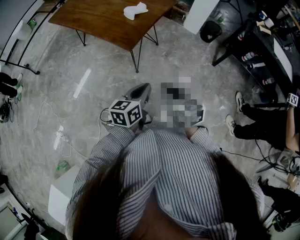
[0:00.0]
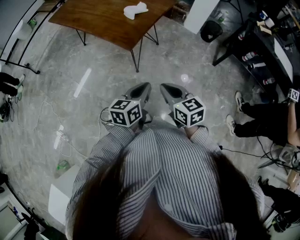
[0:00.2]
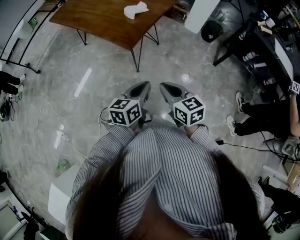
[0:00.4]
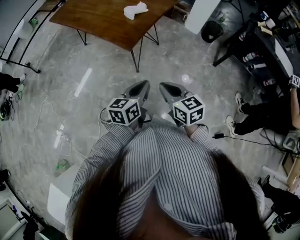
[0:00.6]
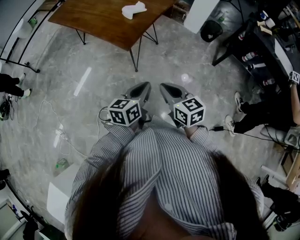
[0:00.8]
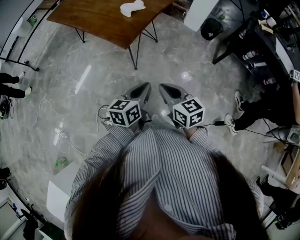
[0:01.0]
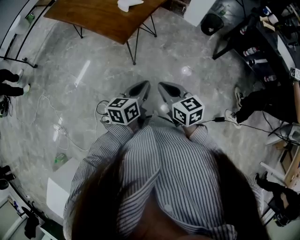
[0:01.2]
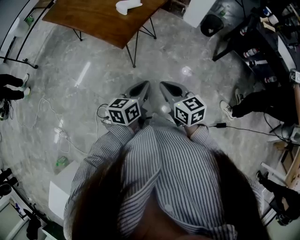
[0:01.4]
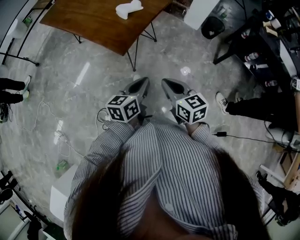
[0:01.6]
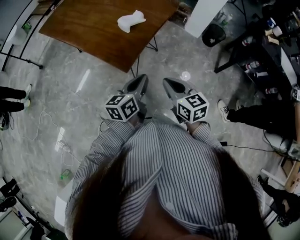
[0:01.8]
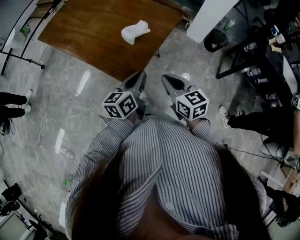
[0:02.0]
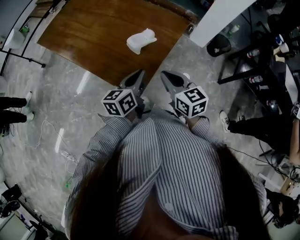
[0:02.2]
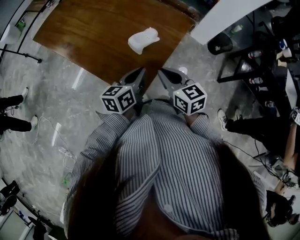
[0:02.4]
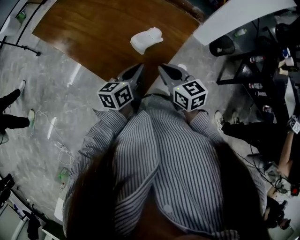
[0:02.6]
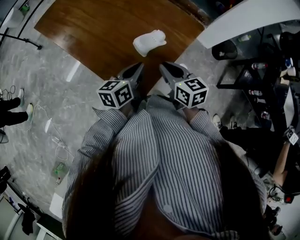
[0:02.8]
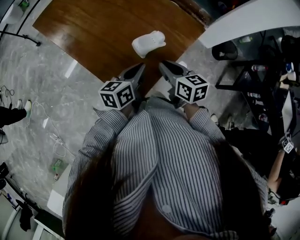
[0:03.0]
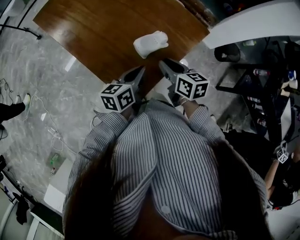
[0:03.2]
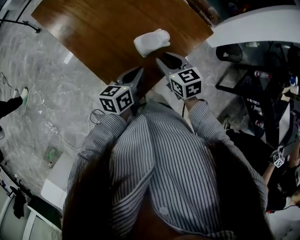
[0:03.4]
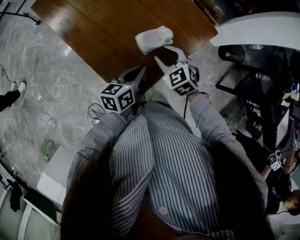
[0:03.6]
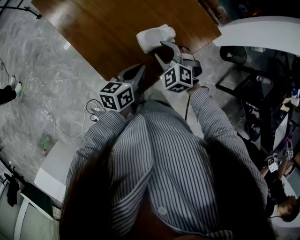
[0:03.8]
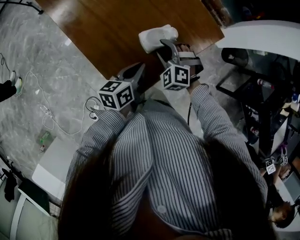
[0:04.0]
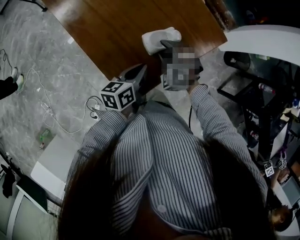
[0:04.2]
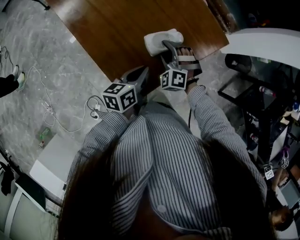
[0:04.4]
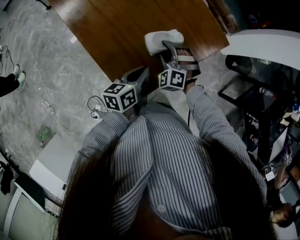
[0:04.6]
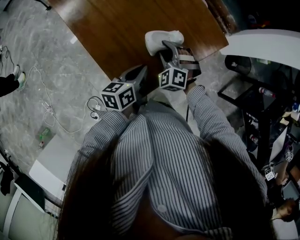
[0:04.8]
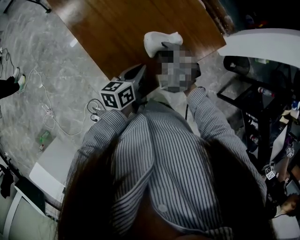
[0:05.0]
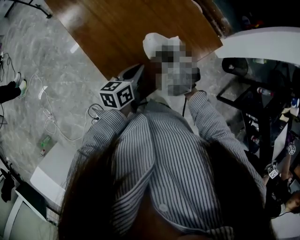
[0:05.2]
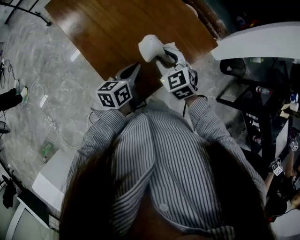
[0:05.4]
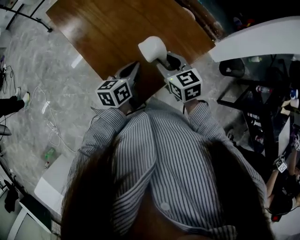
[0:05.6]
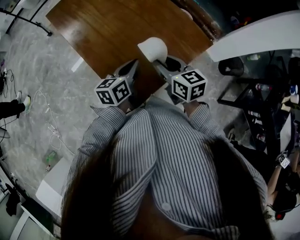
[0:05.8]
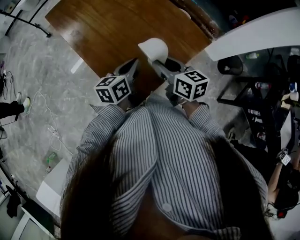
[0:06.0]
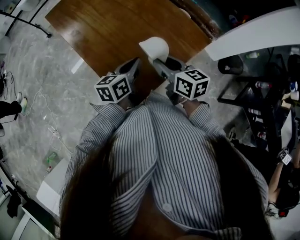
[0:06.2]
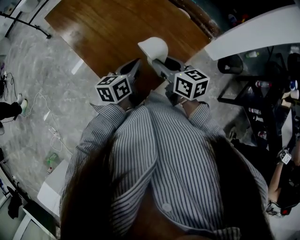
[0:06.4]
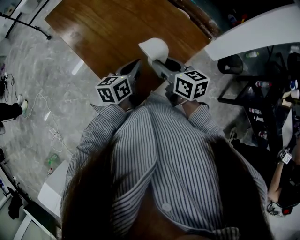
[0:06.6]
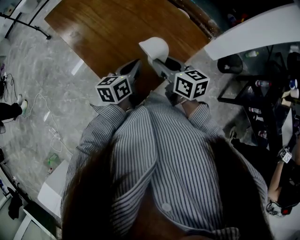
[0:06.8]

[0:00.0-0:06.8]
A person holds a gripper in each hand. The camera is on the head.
0:00.0 to 0:01.4: The left gripper ends up some 5 cm from where it was. Meanwhile the right gripper changes place by approximately 5 cm.
0:01.4 to 0:02.8: The two grippers travel together, forward, about 40 cm.
0:02.8 to 0:04.0: The left gripper moves downward, about 5 cm; the right gripper shifts approximately 15 cm downward and forward, rotates around the line of its fingers by roughly 80 degrees, counterclockwise from behind, and opens its fingers.
0:04.0 to 0:05.4: The right gripper heads upward, covering approximately 10 cm, and swivels about 40 degrees. The left gripper changes place by some 5 cm.
0:05.4 to 0:06.8: The right gripper ends up some 5 cm from where it was, and rolls clockwise, seen from behind, by approximately 50 degrees.

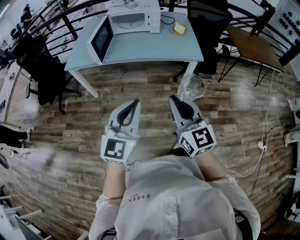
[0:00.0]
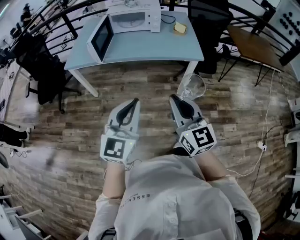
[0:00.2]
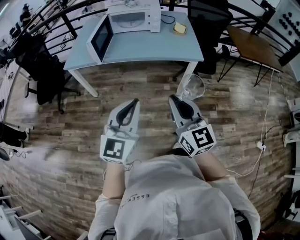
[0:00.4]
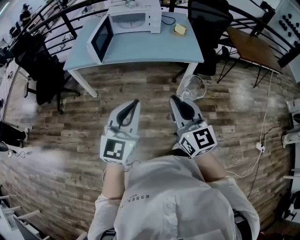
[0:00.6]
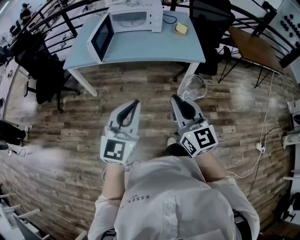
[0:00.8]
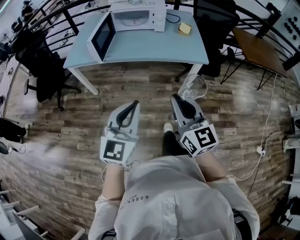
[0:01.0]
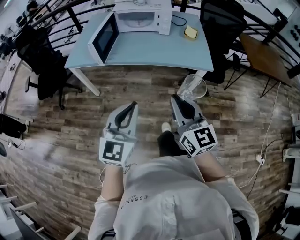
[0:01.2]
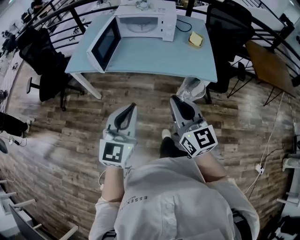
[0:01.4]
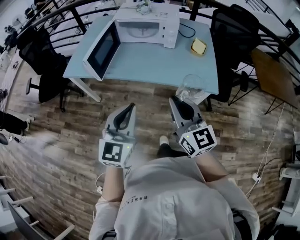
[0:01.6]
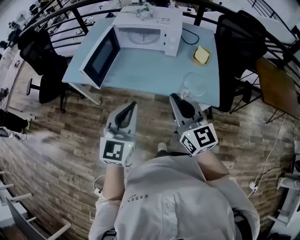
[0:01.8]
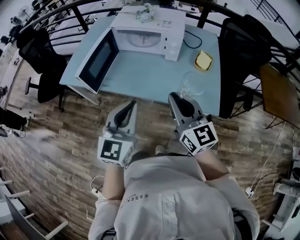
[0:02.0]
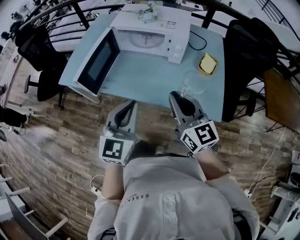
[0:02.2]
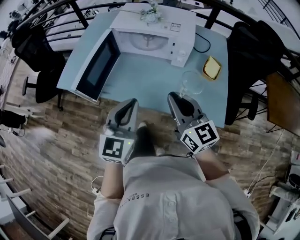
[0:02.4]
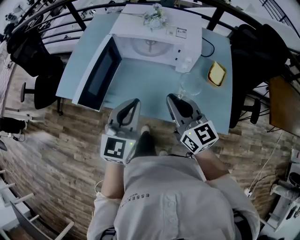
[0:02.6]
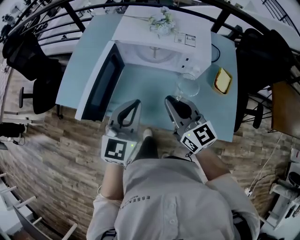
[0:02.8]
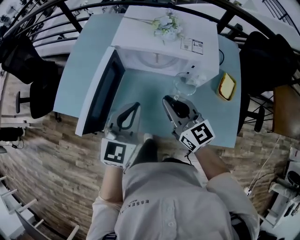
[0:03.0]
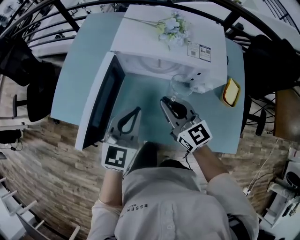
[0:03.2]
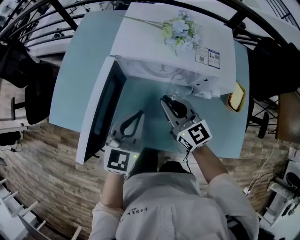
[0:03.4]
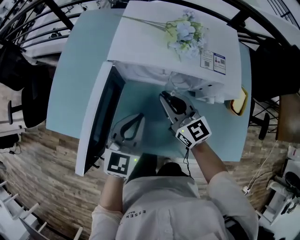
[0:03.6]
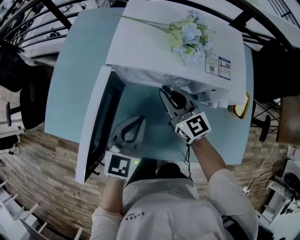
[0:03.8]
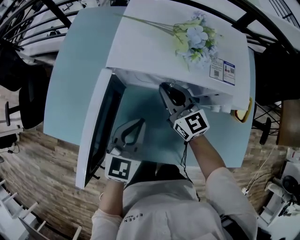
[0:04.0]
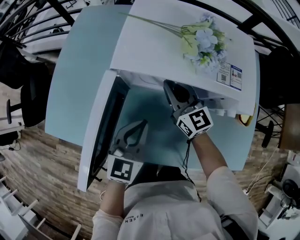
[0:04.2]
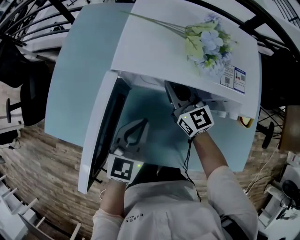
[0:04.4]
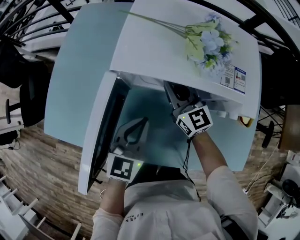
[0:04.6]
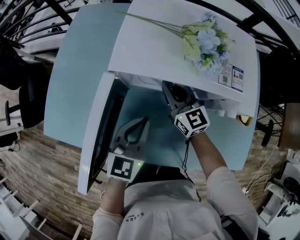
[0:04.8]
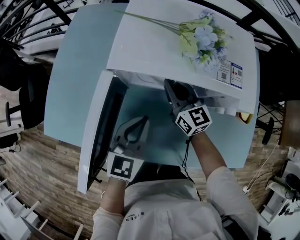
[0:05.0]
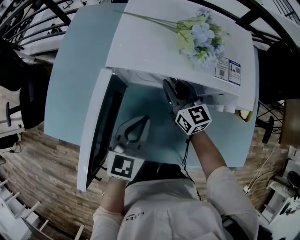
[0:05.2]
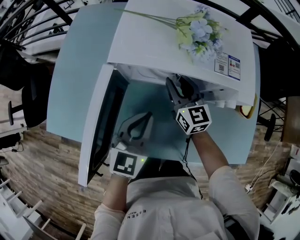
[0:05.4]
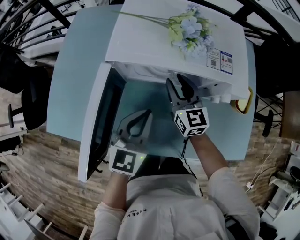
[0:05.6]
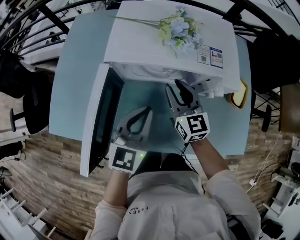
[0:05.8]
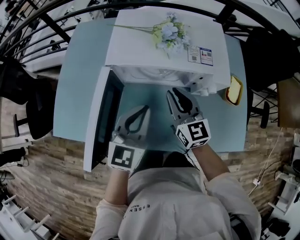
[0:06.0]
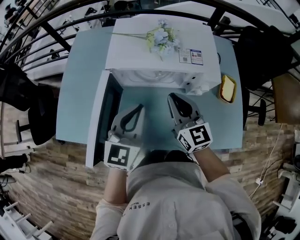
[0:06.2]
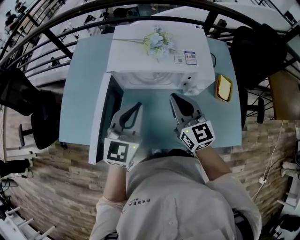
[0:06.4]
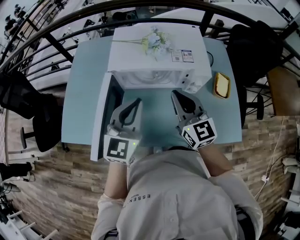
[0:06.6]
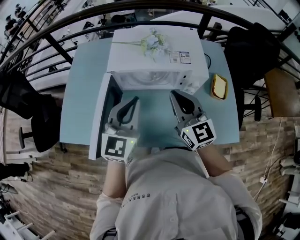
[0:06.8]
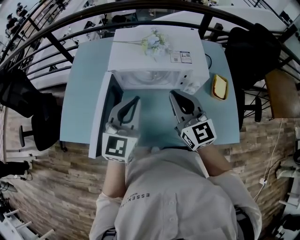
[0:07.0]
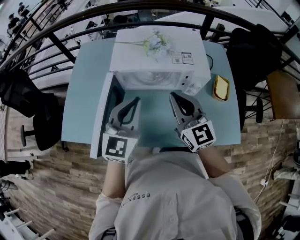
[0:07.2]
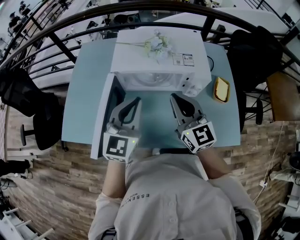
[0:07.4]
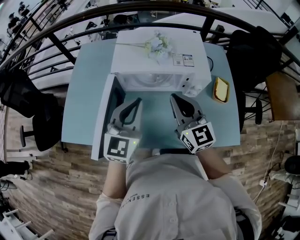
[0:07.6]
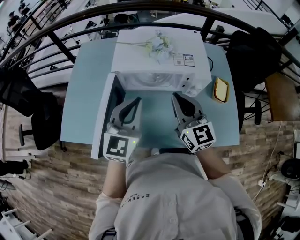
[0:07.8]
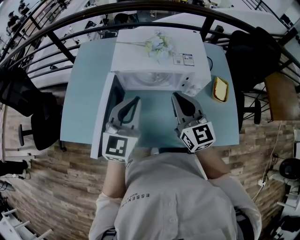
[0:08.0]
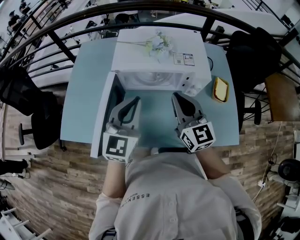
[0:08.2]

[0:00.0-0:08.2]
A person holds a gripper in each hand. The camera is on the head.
0:00.0 to 0:01.6: Both grippers move forward, some 25 cm.
0:01.6 to 0:03.2: The two grippers travel together, forward, approximately 40 cm.
0:03.2 to 0:05.0: The left gripper is displaced downward and forward by some 10 cm, while the right gripper moves forward and downward, approximately 20 cm.
0:05.0 to 0:06.6: The right gripper moves upward, backward and to the right, approximately 25 cm, and opens, then closes again, while the left gripper is displaced upward by about 15 cm.
0:06.6 to 0:08.2: The grippers move only a little.

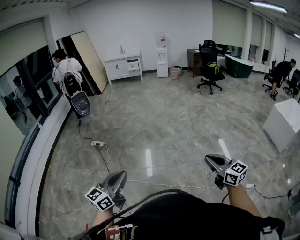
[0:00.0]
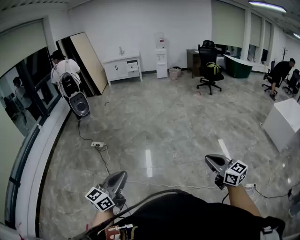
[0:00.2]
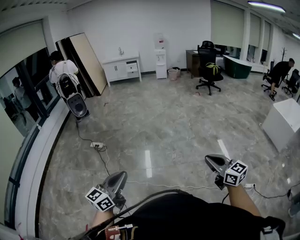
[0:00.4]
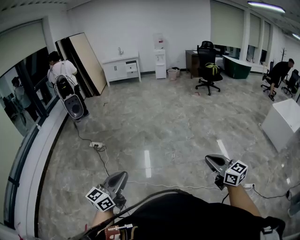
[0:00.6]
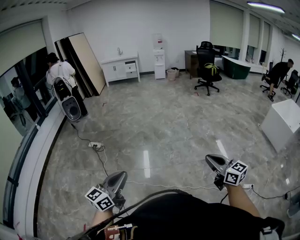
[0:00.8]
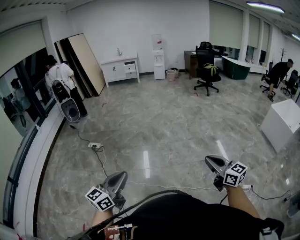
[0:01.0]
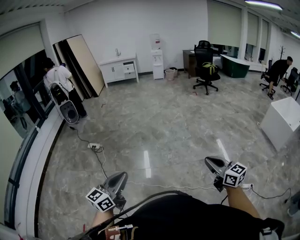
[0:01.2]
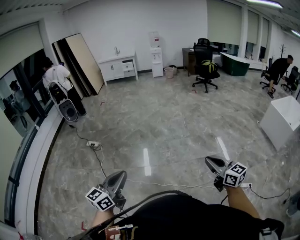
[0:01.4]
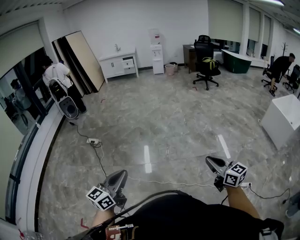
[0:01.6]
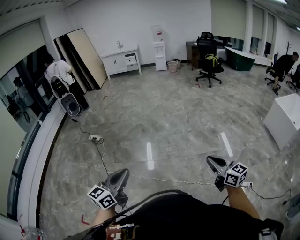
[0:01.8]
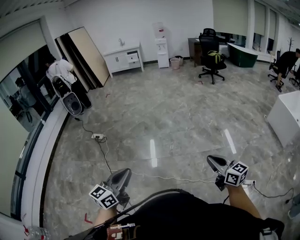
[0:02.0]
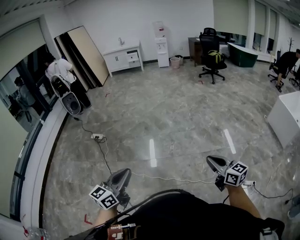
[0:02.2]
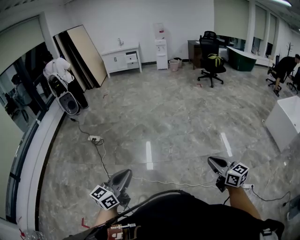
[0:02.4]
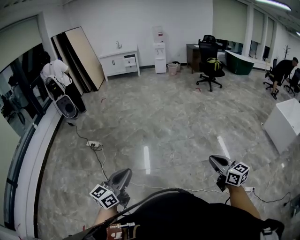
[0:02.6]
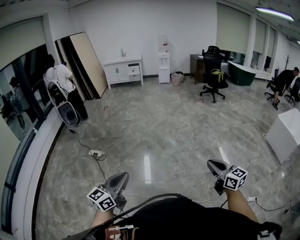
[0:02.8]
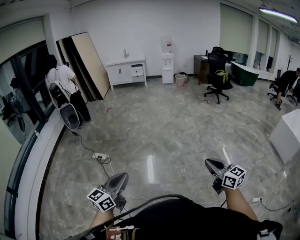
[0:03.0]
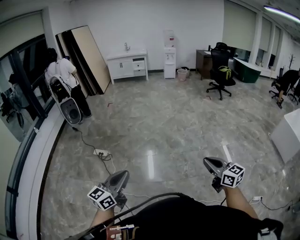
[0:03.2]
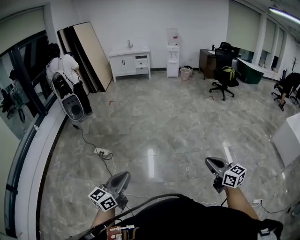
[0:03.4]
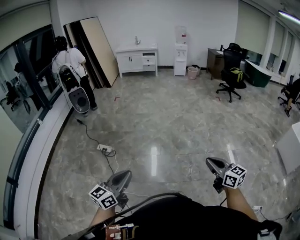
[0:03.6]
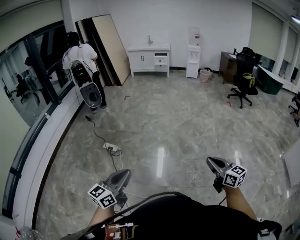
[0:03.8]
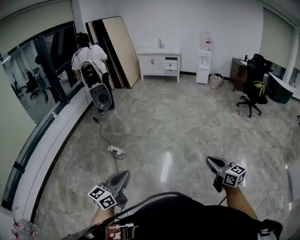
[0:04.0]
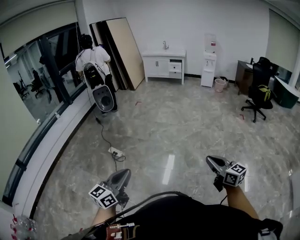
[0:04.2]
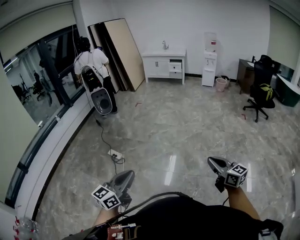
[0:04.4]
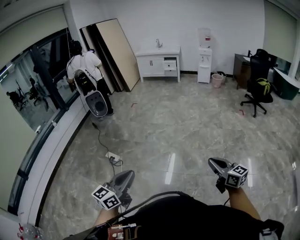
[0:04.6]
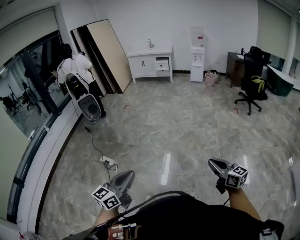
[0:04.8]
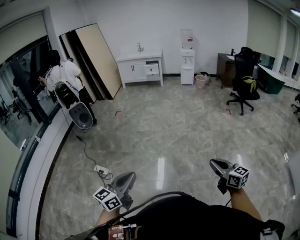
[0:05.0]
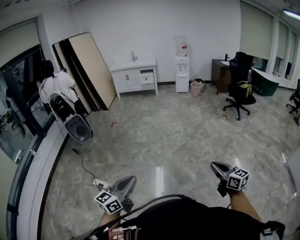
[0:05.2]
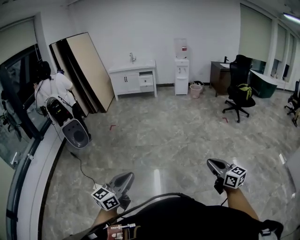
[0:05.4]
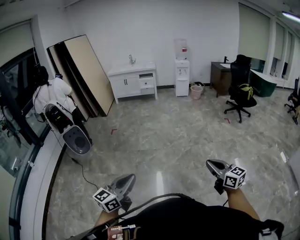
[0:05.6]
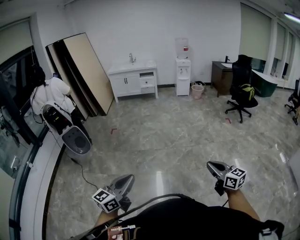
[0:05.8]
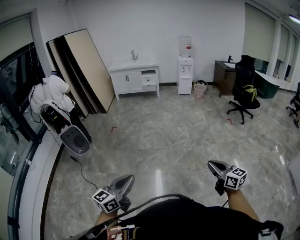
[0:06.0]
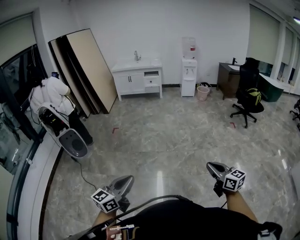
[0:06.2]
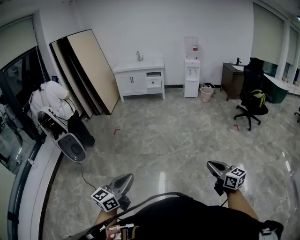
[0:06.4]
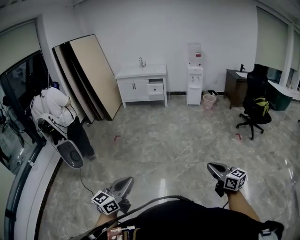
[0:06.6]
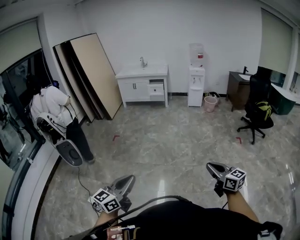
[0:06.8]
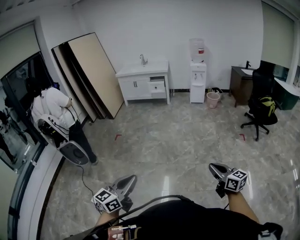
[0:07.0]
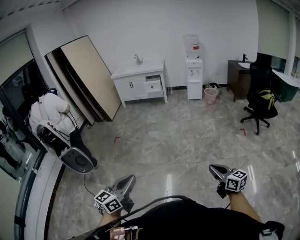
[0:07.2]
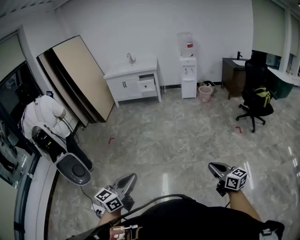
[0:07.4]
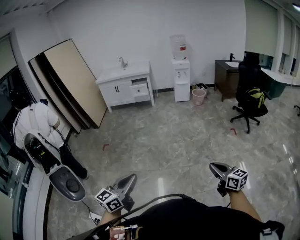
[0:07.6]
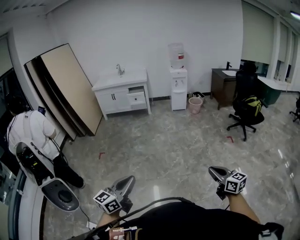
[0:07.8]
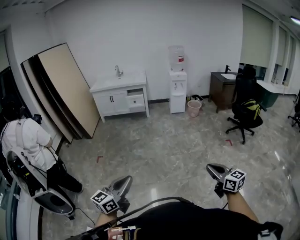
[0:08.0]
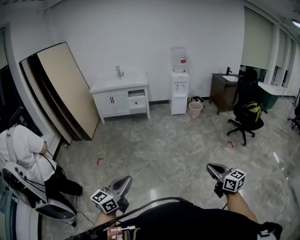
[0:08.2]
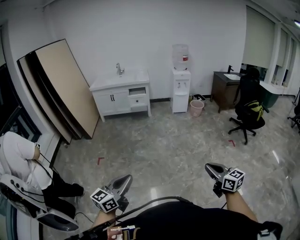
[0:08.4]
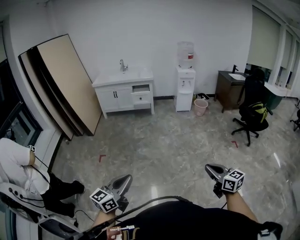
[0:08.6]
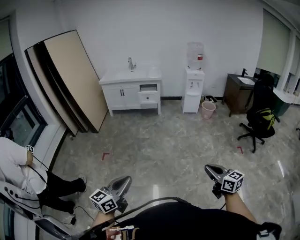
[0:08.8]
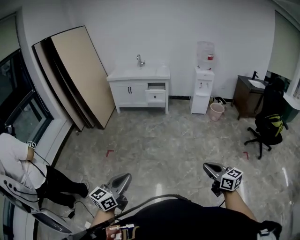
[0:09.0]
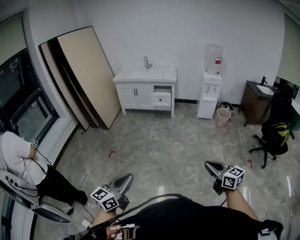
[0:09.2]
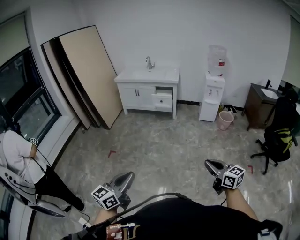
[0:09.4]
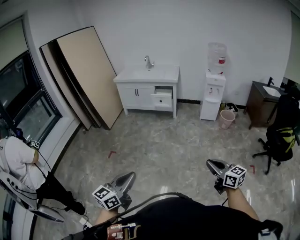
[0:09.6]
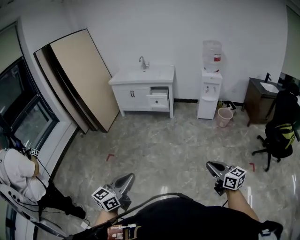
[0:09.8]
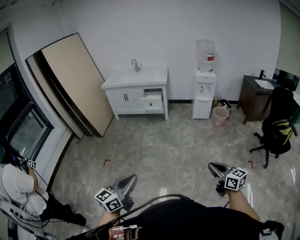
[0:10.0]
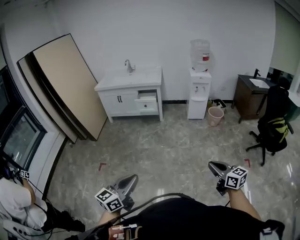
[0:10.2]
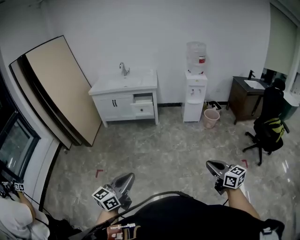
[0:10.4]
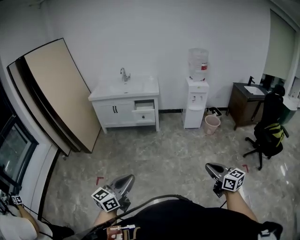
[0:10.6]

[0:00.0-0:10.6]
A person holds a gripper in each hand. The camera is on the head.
0:00.0 to 0:01.6: Both grippers travel together to the right, approximately 15 cm.
0:01.6 to 0:03.0: Both grippers move forward and to the left, about 35 cm.
0:03.0 to 0:04.6: The two grippers go about 35 cm forward.
0:04.6 to 0:06.0: Both grippers travel together forward and to the left, roughly 40 cm.
0:06.0 to 0:07.6: Both grippers are carried forward and to the right, some 40 cm.
0:07.6 to 0:09.0: Both grippers travel together forward and to the left, some 35 cm.
0:09.0 to 0:10.6: Both grippers move forward, roughly 30 cm.
